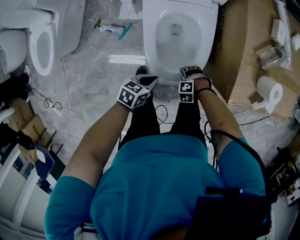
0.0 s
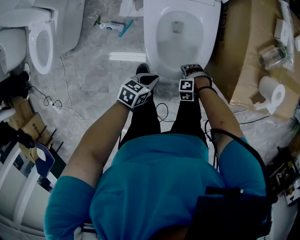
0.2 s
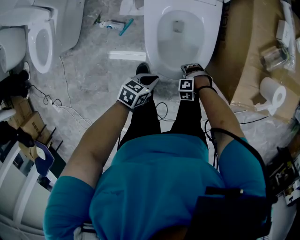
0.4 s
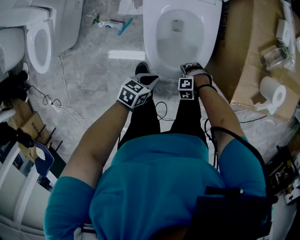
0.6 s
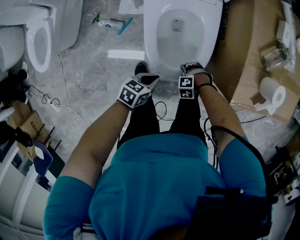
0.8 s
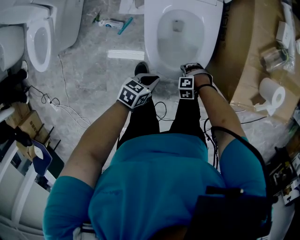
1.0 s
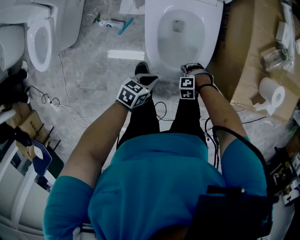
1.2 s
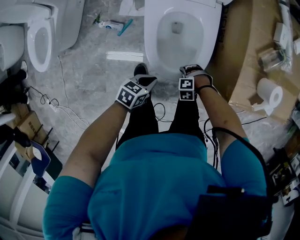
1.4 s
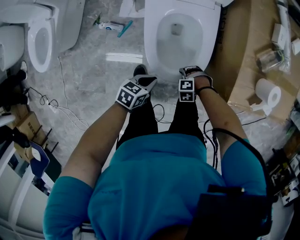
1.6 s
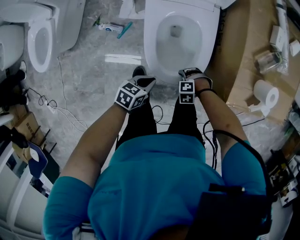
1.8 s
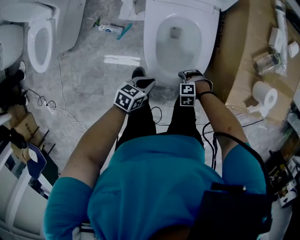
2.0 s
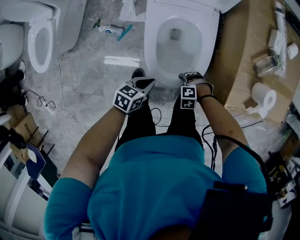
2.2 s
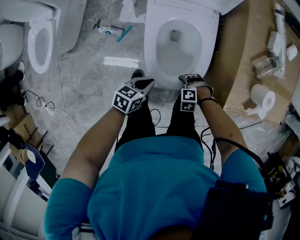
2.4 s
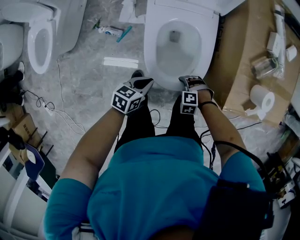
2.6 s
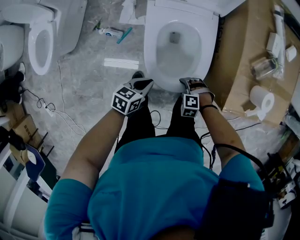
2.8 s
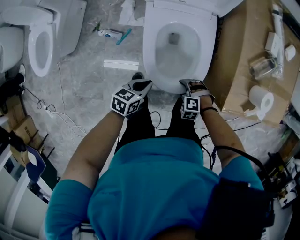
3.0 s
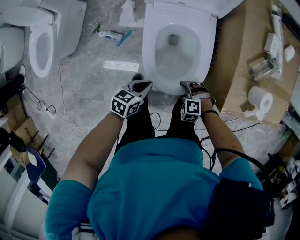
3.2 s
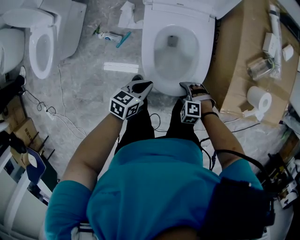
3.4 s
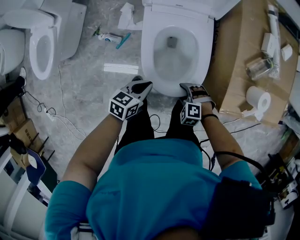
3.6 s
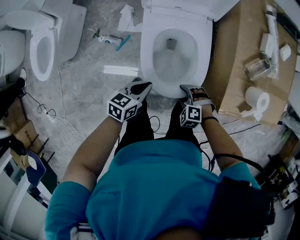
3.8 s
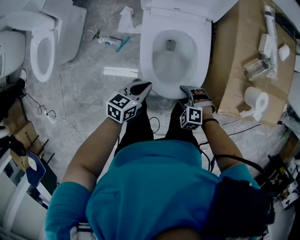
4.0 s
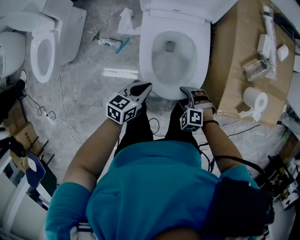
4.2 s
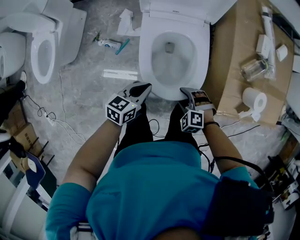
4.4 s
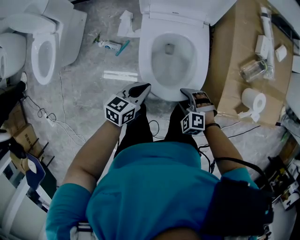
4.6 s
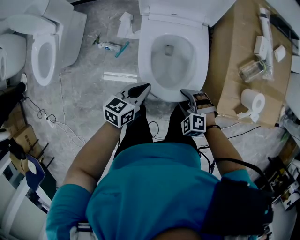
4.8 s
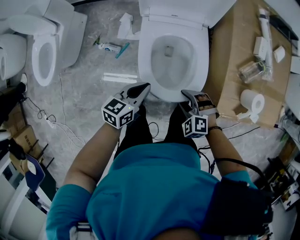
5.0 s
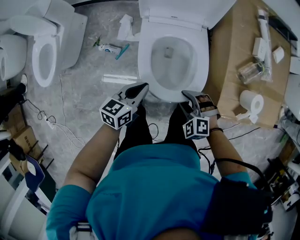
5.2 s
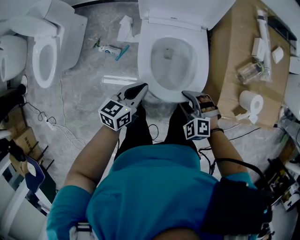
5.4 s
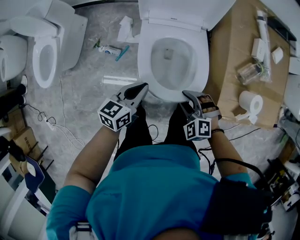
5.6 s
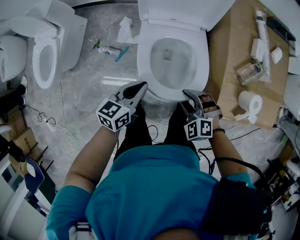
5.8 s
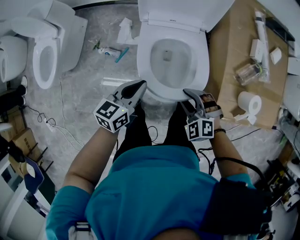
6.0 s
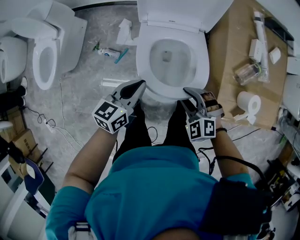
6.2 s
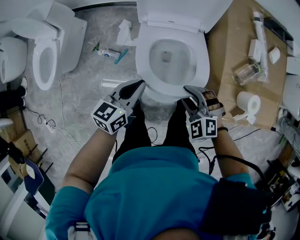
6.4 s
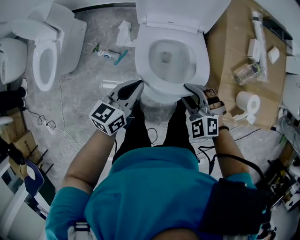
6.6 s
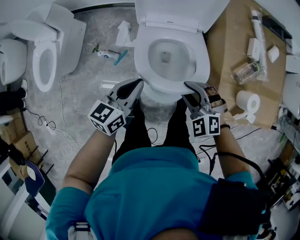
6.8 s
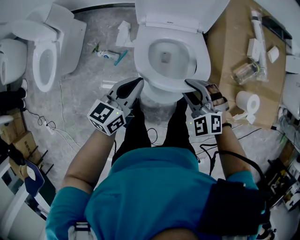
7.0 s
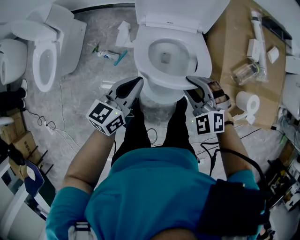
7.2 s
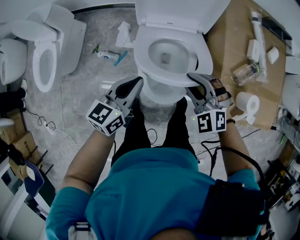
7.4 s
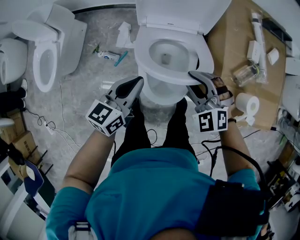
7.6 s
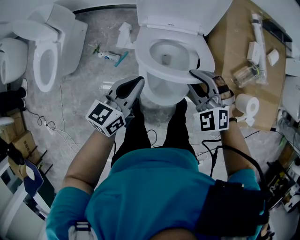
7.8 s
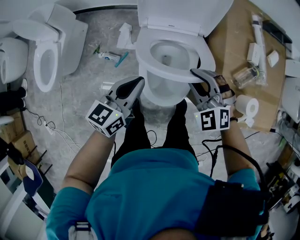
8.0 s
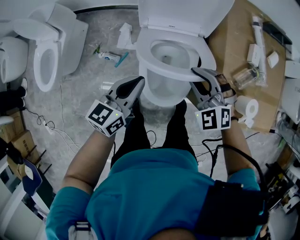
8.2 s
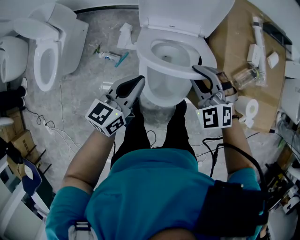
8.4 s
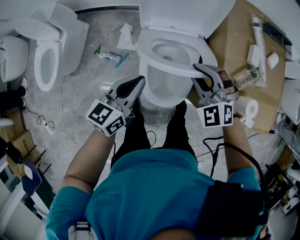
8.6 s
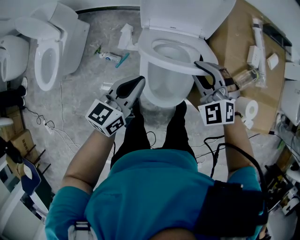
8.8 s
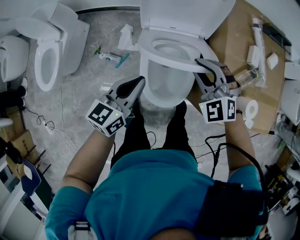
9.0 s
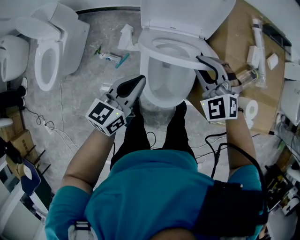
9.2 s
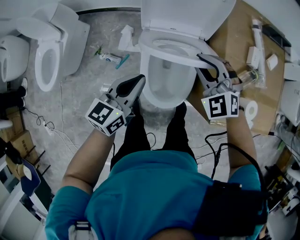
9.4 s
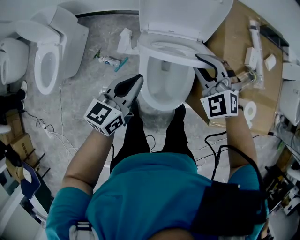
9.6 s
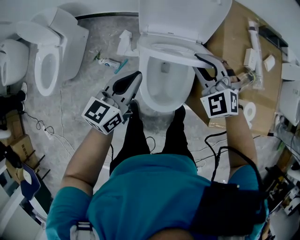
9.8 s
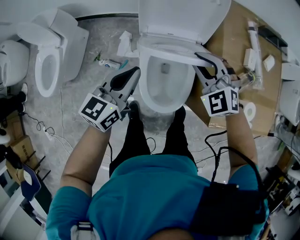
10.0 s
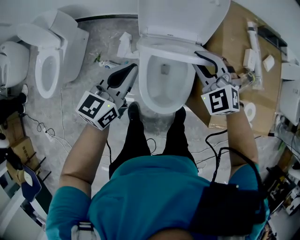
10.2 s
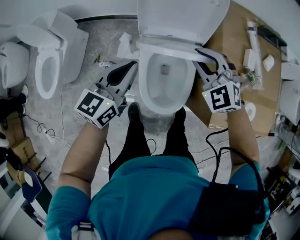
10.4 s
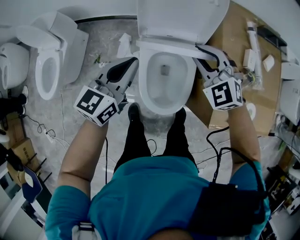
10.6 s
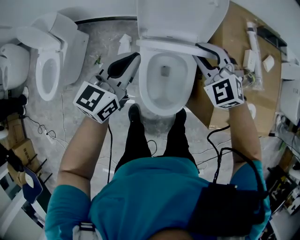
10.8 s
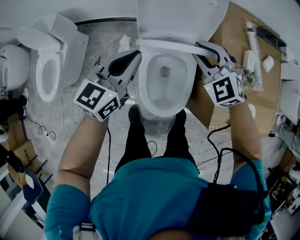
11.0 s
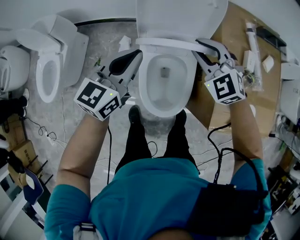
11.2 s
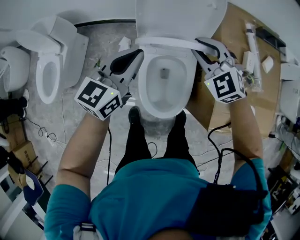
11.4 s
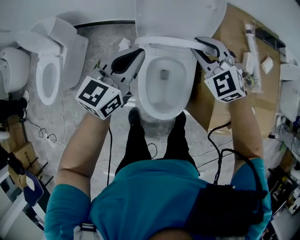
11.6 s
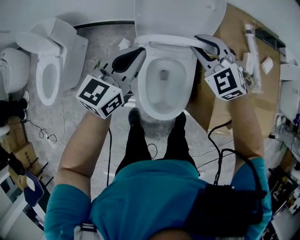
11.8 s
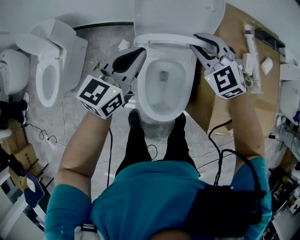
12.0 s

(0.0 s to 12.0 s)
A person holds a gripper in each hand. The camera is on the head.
0.0 s - 1.6 s: The grippers stay close to where they were, moving slightly.
1.6 s - 3.0 s: The right gripper travels upward by some 5 cm.
3.0 s - 4.4 s: Both grippers move upward, approximately 10 cm.
4.4 s - 6.0 s: Both grippers travel together upward and forward, some 10 cm.
6.0 s - 7.6 s: The right gripper shifts roughly 15 cm forward and upward, while the left gripper travels upward by approximately 5 cm.
7.6 s - 9.0 s: The right gripper goes some 5 cm forward.
9.0 s - 10.4 s: The two grippers go about 5 cm forward.
10.4 s - 12.0 s: Both grippers travel together forward, roughly 5 cm.

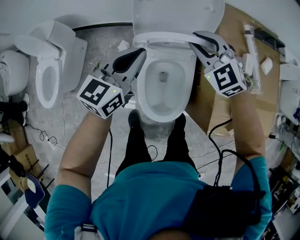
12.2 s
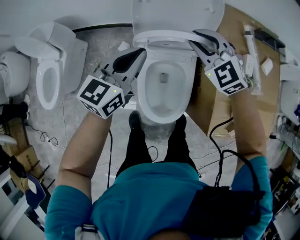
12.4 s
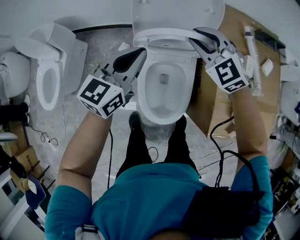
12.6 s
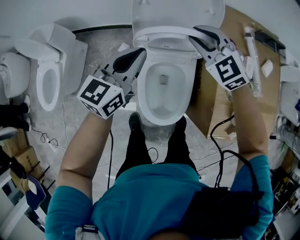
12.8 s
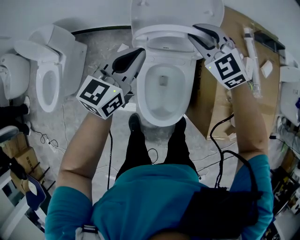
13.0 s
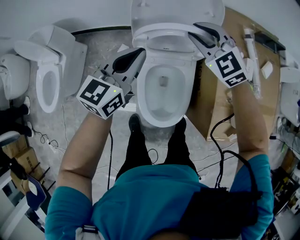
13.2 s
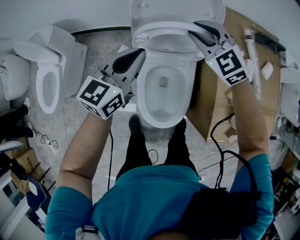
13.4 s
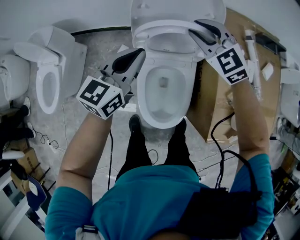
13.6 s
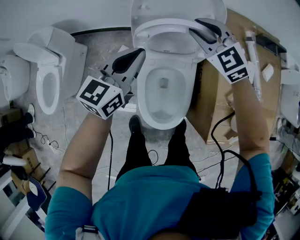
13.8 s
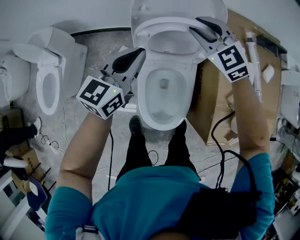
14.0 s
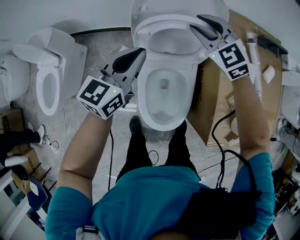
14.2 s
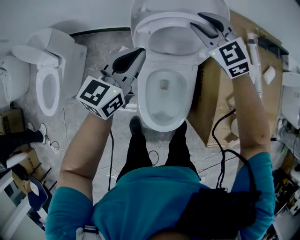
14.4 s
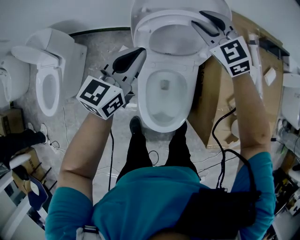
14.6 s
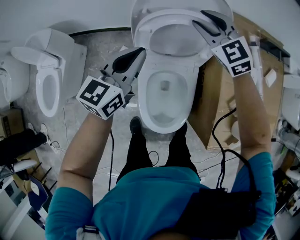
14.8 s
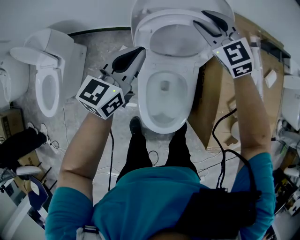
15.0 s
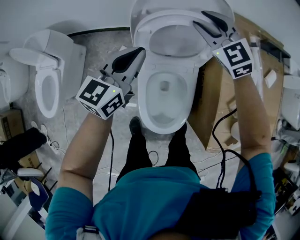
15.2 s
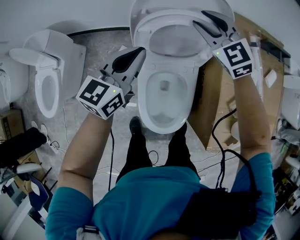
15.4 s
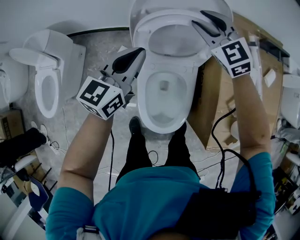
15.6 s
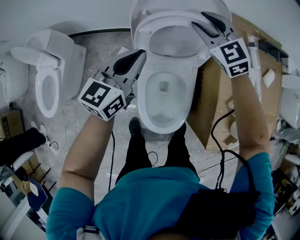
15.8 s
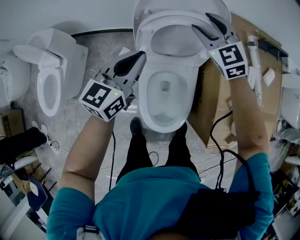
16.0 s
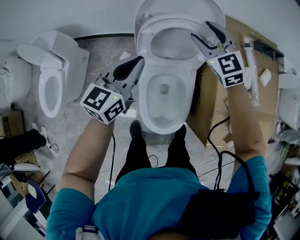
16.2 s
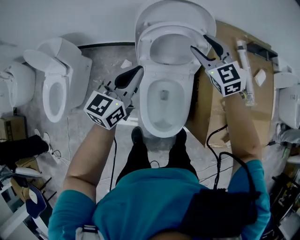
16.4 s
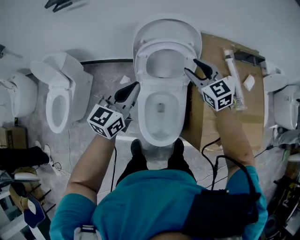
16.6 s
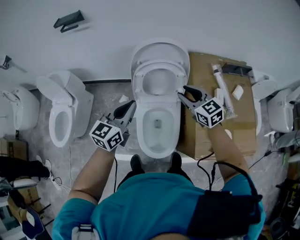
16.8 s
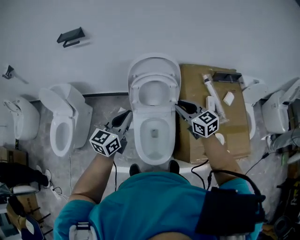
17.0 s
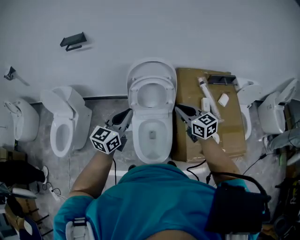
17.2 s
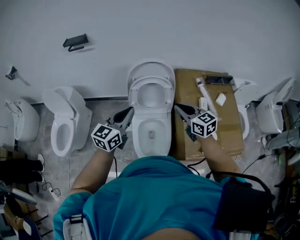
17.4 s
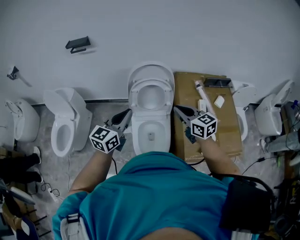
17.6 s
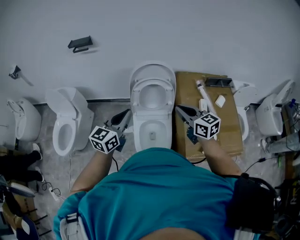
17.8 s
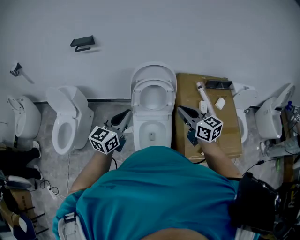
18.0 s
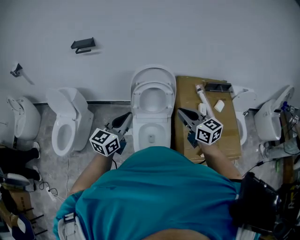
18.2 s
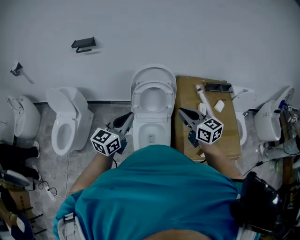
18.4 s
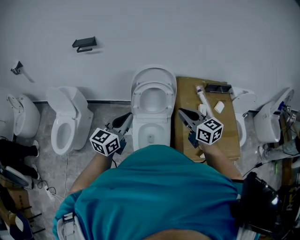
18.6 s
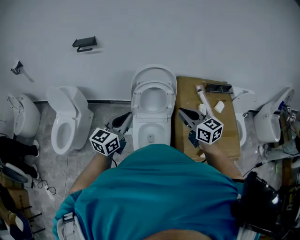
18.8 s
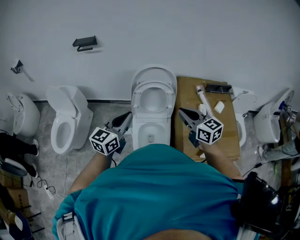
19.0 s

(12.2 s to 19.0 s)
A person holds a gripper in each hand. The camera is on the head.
12.2 s - 13.6 s: The right gripper travels forward by about 10 cm.
13.6 s - 15.0 s: The left gripper moves some 5 cm, while the right gripper shifts roughly 5 cm forward.
15.0 s - 16.2 s: The right gripper changes place by some 5 cm. Meanwhile the left gripper moves approximately 5 cm.
16.2 s - 17.6 s: The right gripper shifts approximately 30 cm backward and upward, rotates some 40 degrees, and closes up, while the left gripper moves upward and backward, some 25 cm.
17.6 s - 19.0 s: The grippers stay close to where they were, moving slightly.

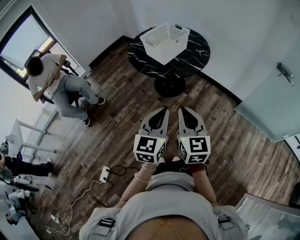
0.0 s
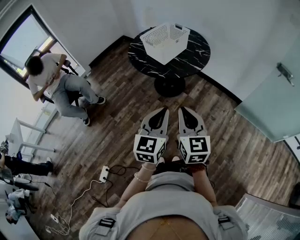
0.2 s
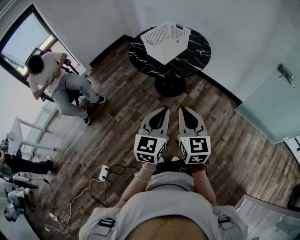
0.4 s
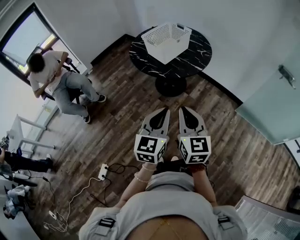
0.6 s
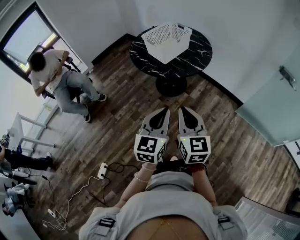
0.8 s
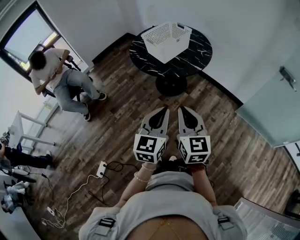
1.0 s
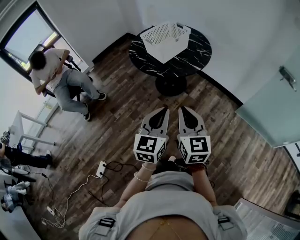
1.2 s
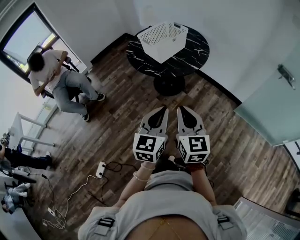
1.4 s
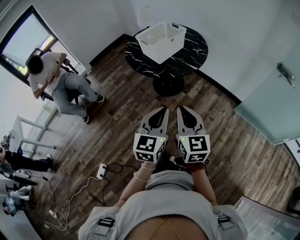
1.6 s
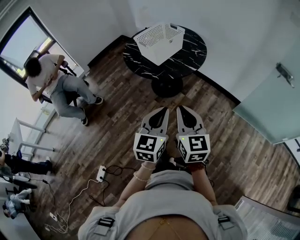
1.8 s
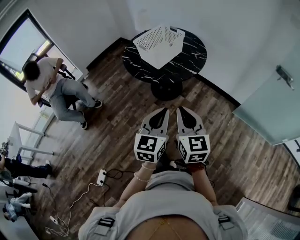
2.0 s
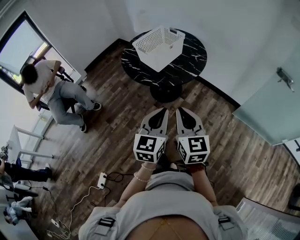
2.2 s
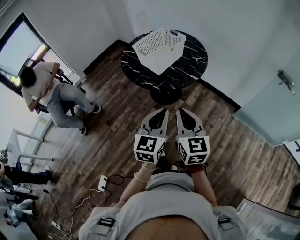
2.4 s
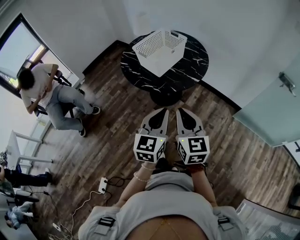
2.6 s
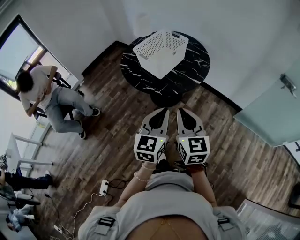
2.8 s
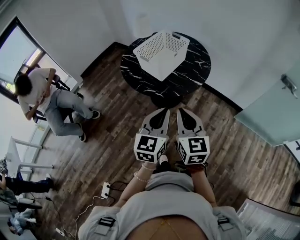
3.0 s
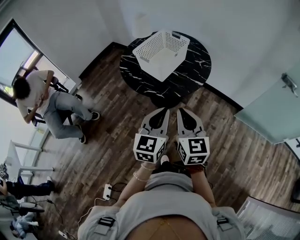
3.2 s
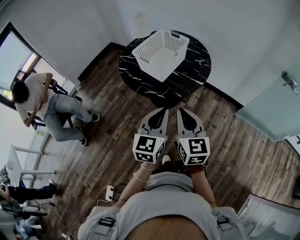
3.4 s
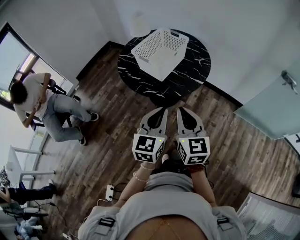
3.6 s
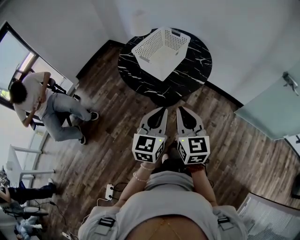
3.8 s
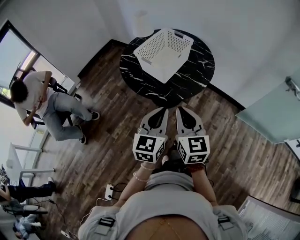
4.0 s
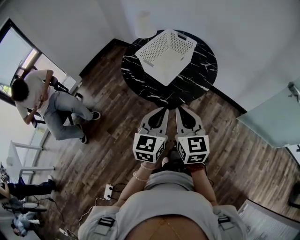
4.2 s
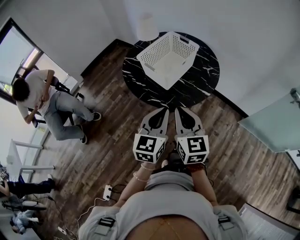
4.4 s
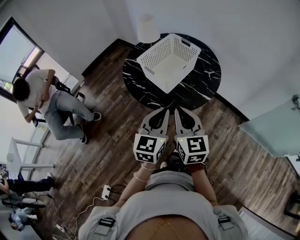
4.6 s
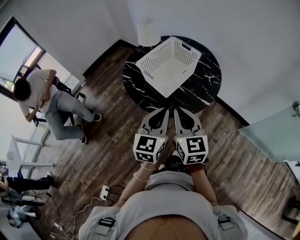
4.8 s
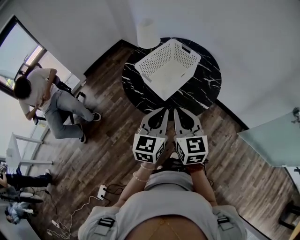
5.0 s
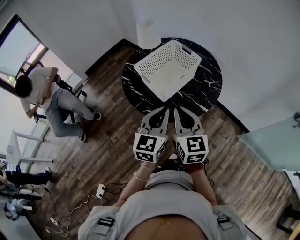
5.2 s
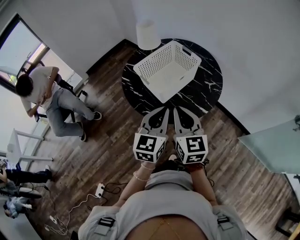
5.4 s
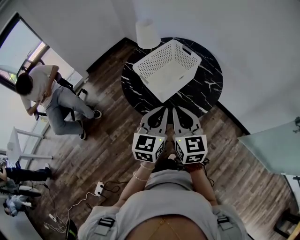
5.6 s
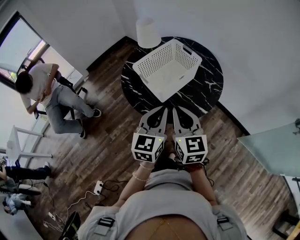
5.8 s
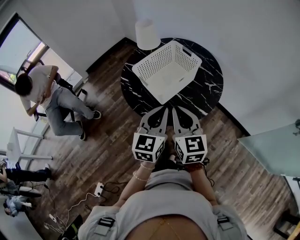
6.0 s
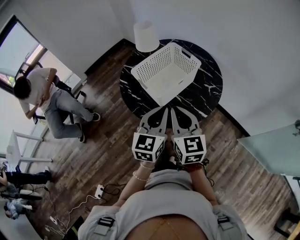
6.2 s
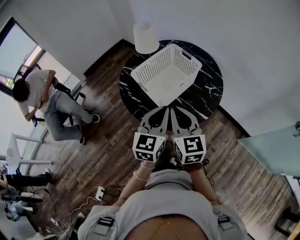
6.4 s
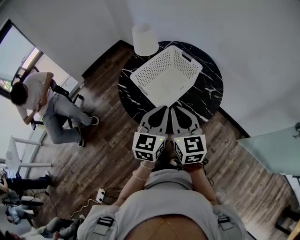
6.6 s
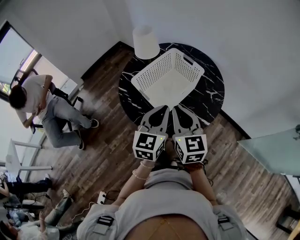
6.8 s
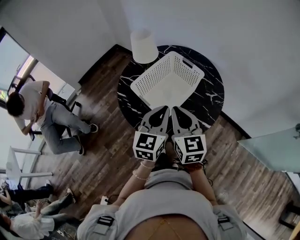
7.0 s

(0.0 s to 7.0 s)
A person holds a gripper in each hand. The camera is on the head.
0.0 s - 1.4 s: The left gripper ends up approximately 5 cm from where it was.
1.4 s - 2.8 s: Both grippers move forward, roughly 15 cm.
2.8 s - 4.2 s: The two grippers go about 10 cm forward and to the left.
4.2 s - 5.6 s: The right gripper heads forward, covering some 15 cm. Meanwhile the left gripper moves forward and to the right, approximately 15 cm.
5.6 s - 7.0 s: Both grippers travel together forward, about 10 cm.
